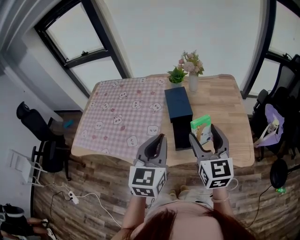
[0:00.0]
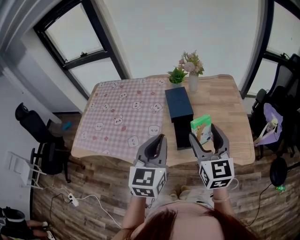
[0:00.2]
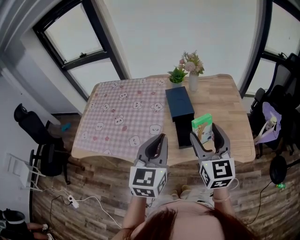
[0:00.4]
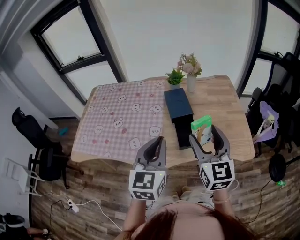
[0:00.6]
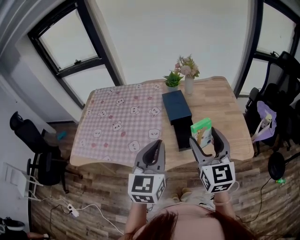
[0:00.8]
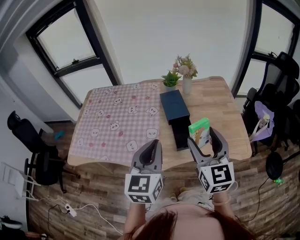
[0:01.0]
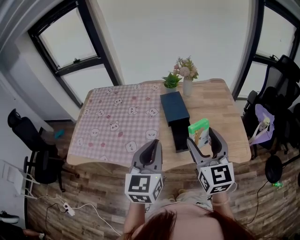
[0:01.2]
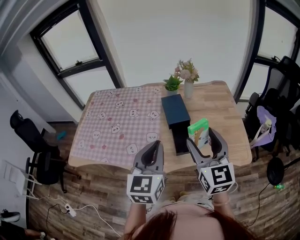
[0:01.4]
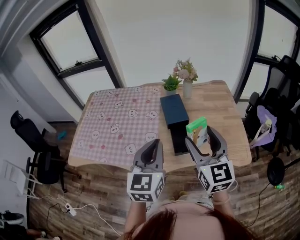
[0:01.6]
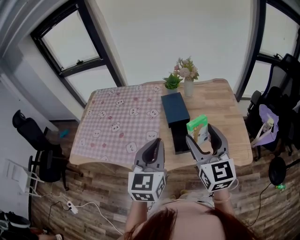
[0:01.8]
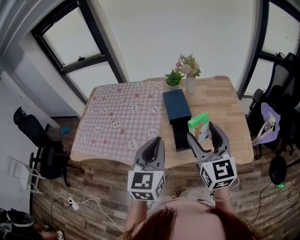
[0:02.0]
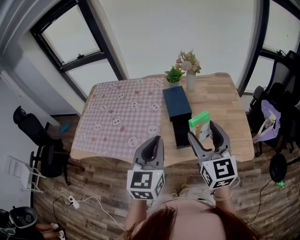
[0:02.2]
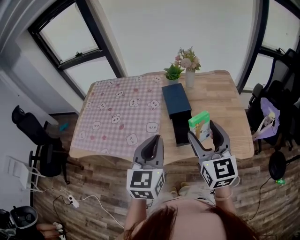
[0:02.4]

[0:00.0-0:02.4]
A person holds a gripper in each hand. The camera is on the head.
0:00.0 to 0:01.2: The right gripper ends up about 5 cm from where it was; the left gripper heads to the left, covering about 5 cm.
0:01.2 to 0:02.4: The grippers move only a little.

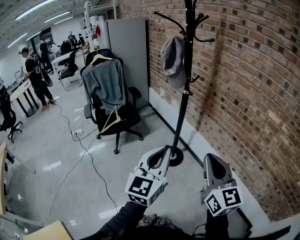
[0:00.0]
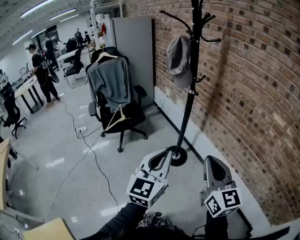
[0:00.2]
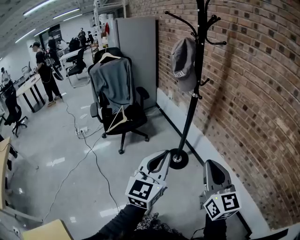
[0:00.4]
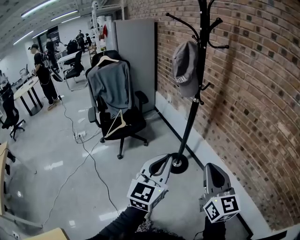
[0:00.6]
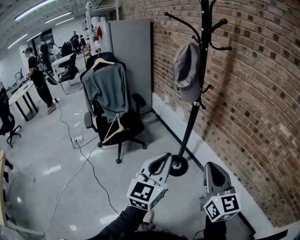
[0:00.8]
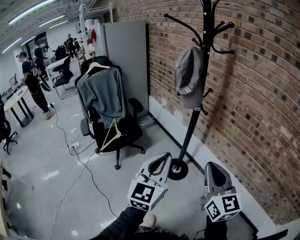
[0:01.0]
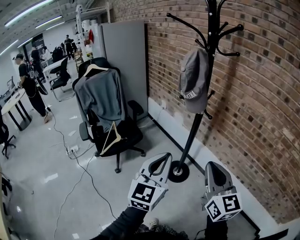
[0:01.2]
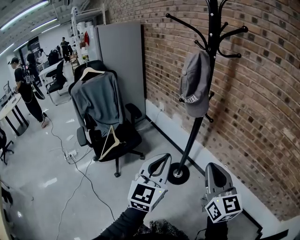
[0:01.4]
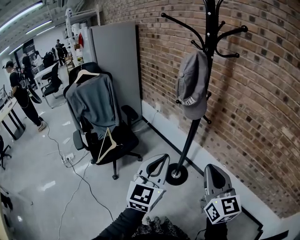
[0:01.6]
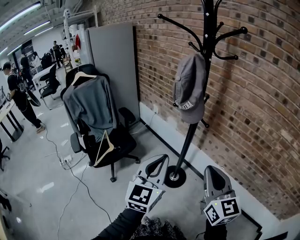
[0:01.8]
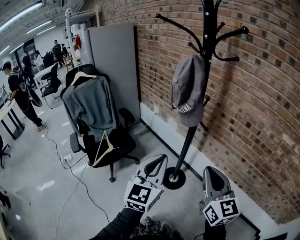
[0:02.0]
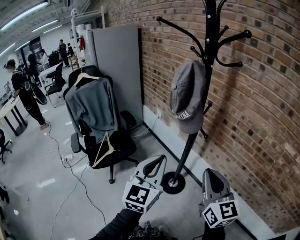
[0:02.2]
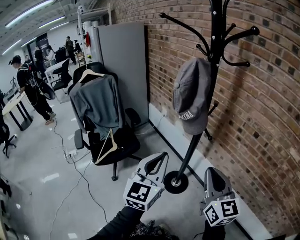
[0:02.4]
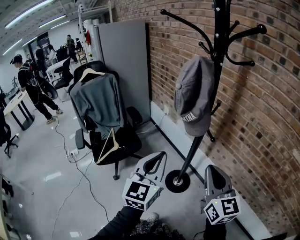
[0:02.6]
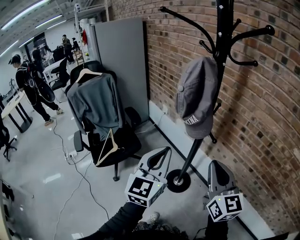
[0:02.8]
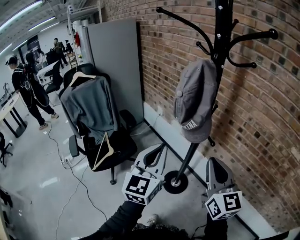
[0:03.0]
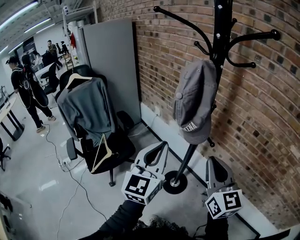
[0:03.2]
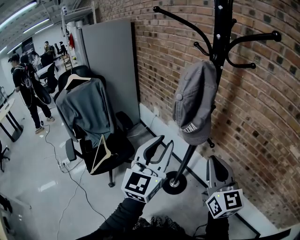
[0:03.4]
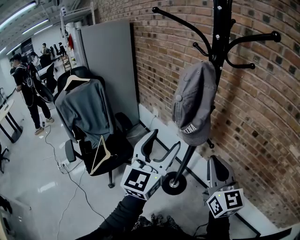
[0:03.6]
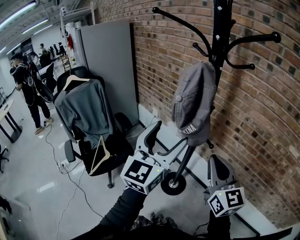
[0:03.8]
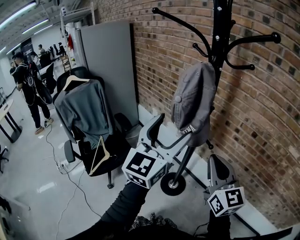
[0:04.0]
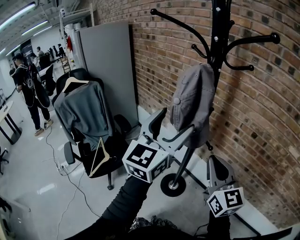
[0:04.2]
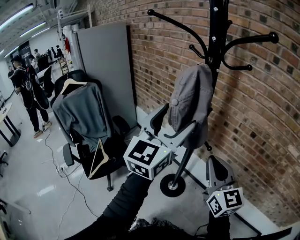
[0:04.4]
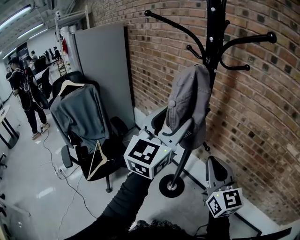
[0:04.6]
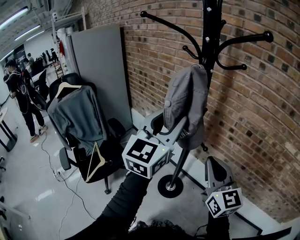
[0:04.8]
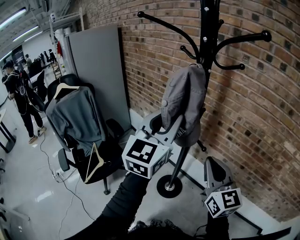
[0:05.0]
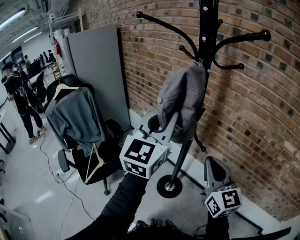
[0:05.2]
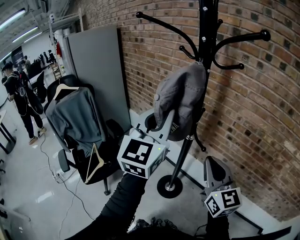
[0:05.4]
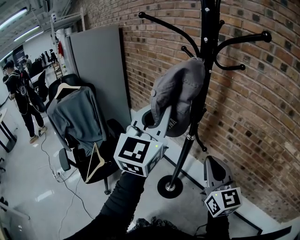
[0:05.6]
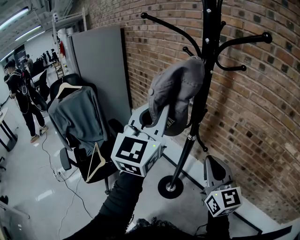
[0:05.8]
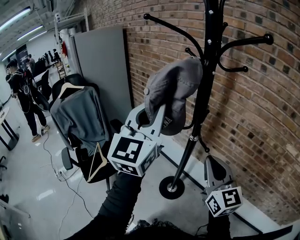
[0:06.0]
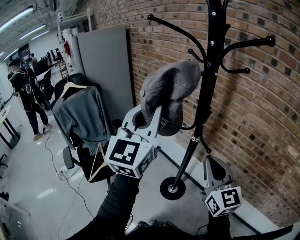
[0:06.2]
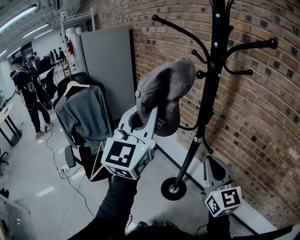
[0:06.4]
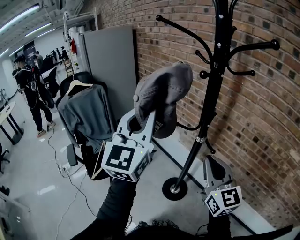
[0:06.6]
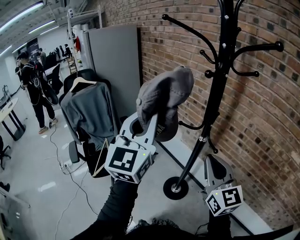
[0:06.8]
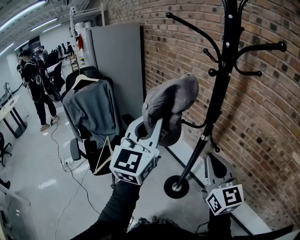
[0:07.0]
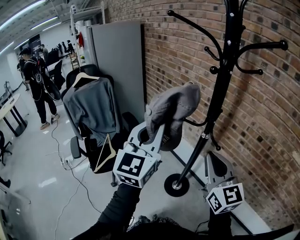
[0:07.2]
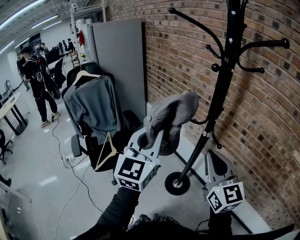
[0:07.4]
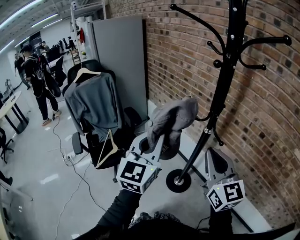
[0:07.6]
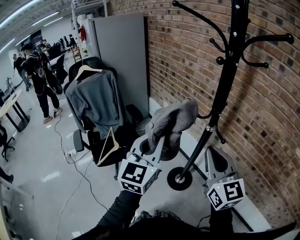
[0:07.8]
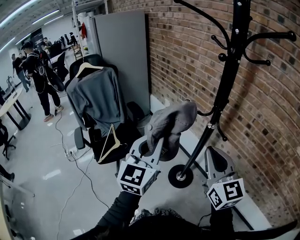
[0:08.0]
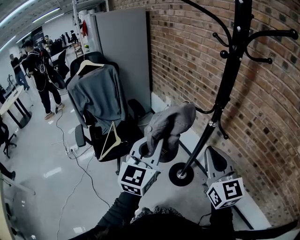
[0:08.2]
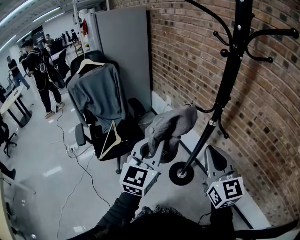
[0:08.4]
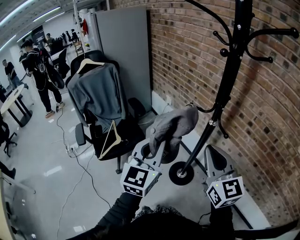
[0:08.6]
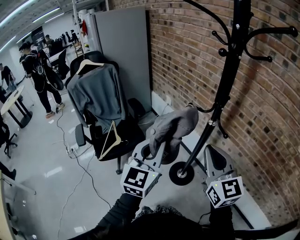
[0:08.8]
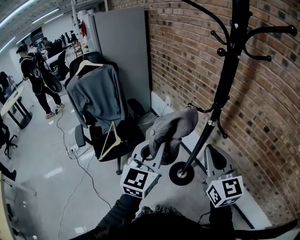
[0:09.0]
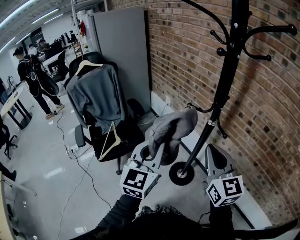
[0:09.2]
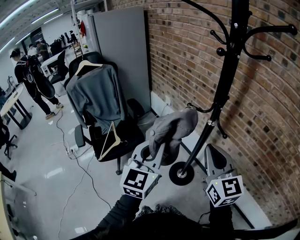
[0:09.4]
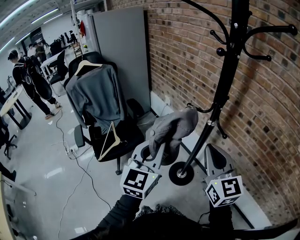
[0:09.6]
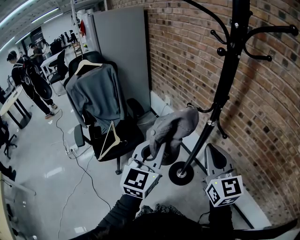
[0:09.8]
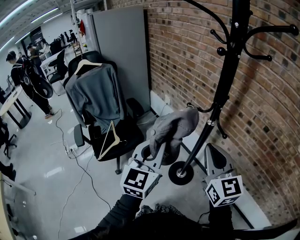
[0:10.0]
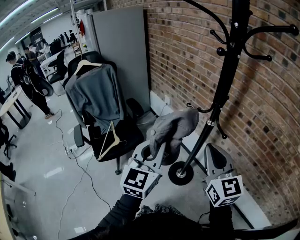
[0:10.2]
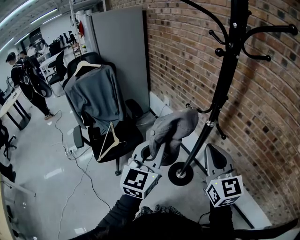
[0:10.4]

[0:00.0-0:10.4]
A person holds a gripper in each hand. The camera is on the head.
0:00.0 to 0:01.4: Both grippers travel together forward and to the left, about 20 cm.
0:01.4 to 0:03.0: Both grippers move forward, roughly 15 cm.
0:03.0 to 0:04.4: The left gripper travels upward and forward by some 15 cm, and opens its fingers.
0:04.4 to 0:06.0: The left gripper is displaced to the left by roughly 5 cm, and closes its fingers.
0:06.0 to 0:07.4: The left gripper heads downward and to the left, covering roughly 10 cm. The right gripper changes place by some 5 cm.
0:07.4 to 0:09.0: The left gripper is displaced downward by some 10 cm.
0:09.0 to 0:10.4: Neither gripper changes place.

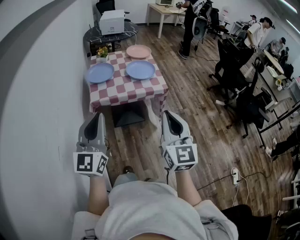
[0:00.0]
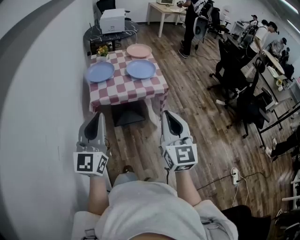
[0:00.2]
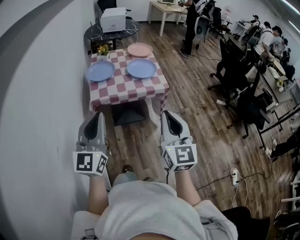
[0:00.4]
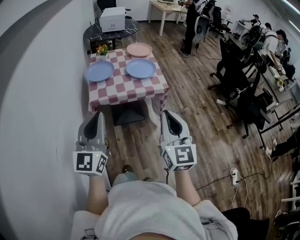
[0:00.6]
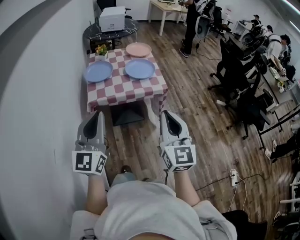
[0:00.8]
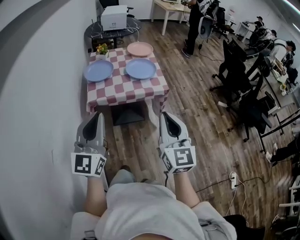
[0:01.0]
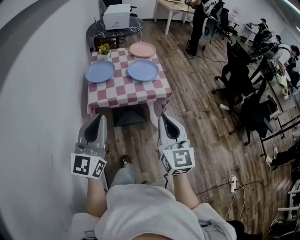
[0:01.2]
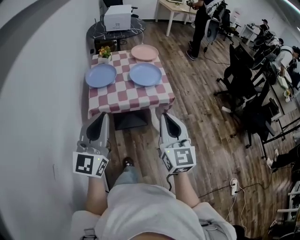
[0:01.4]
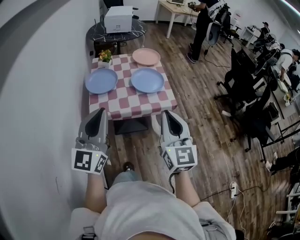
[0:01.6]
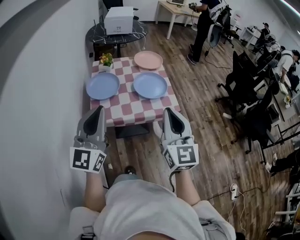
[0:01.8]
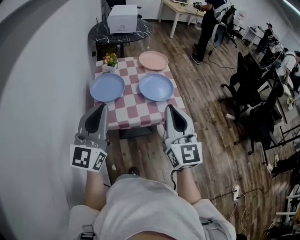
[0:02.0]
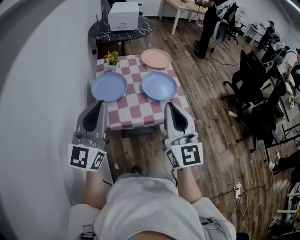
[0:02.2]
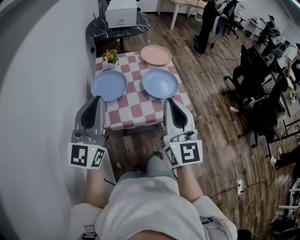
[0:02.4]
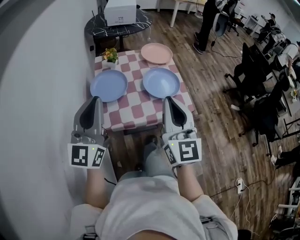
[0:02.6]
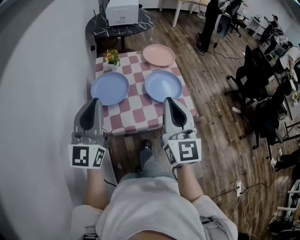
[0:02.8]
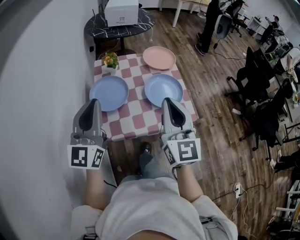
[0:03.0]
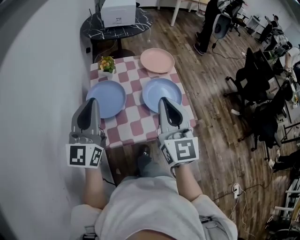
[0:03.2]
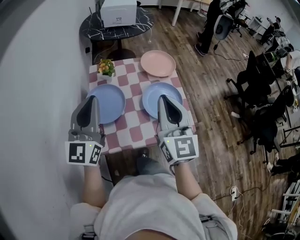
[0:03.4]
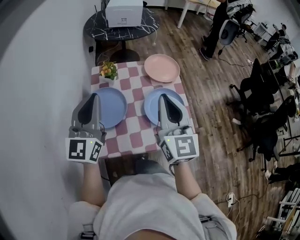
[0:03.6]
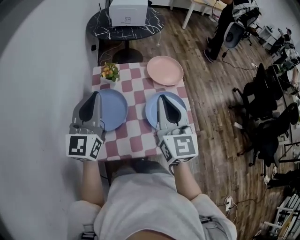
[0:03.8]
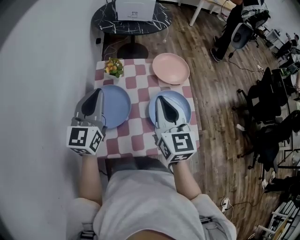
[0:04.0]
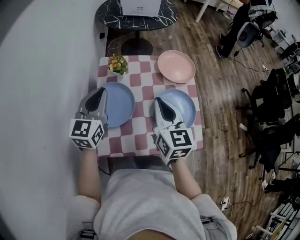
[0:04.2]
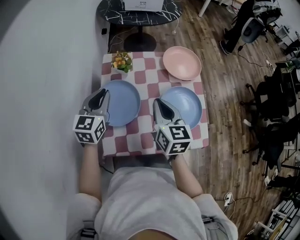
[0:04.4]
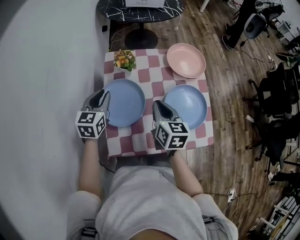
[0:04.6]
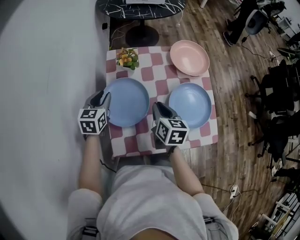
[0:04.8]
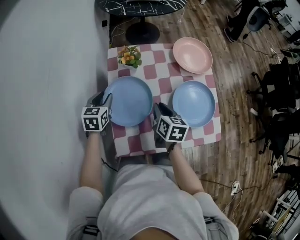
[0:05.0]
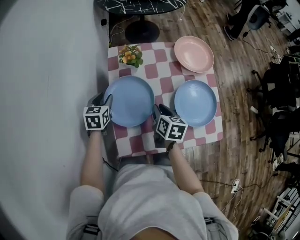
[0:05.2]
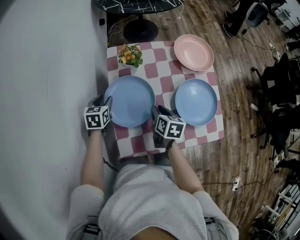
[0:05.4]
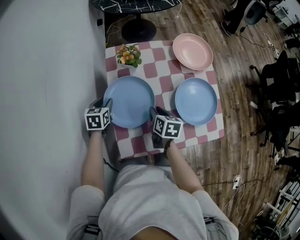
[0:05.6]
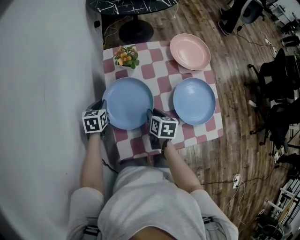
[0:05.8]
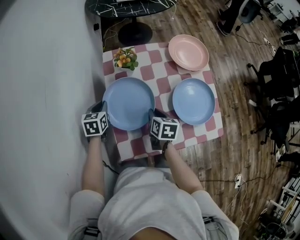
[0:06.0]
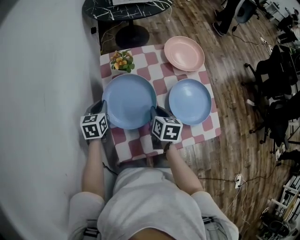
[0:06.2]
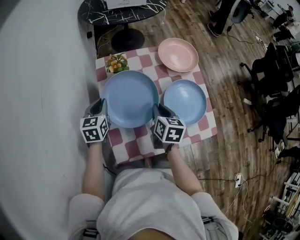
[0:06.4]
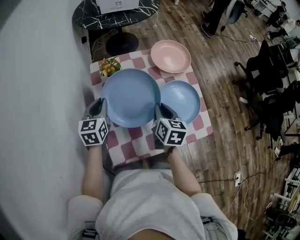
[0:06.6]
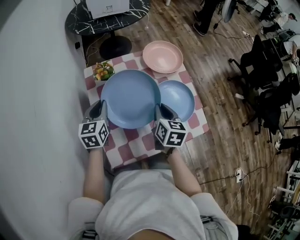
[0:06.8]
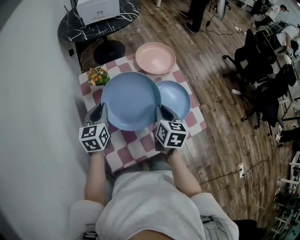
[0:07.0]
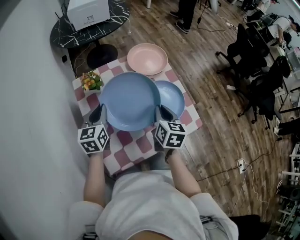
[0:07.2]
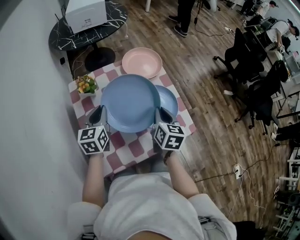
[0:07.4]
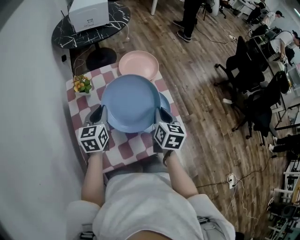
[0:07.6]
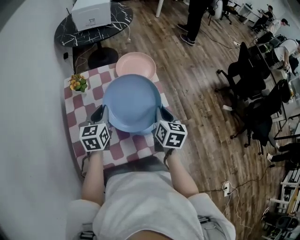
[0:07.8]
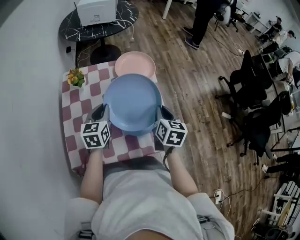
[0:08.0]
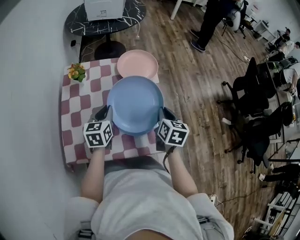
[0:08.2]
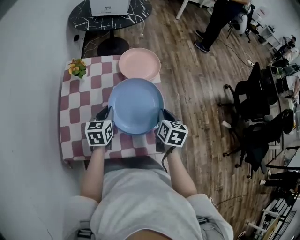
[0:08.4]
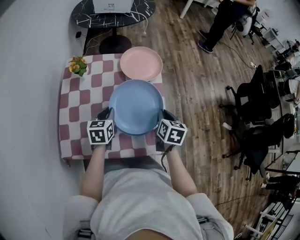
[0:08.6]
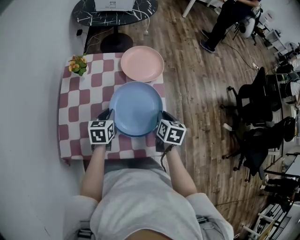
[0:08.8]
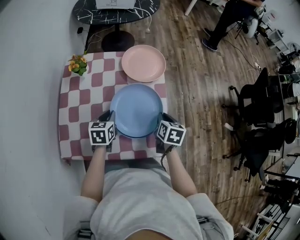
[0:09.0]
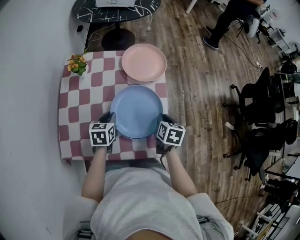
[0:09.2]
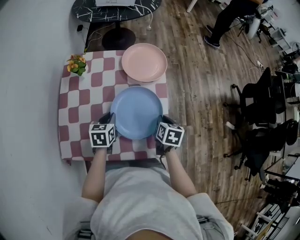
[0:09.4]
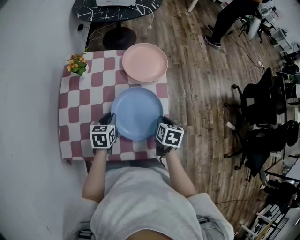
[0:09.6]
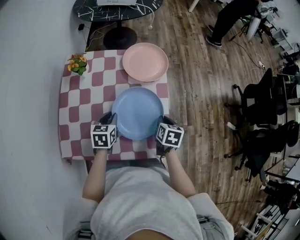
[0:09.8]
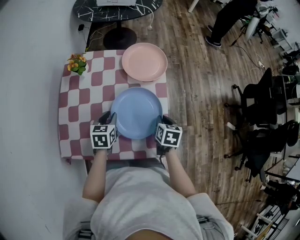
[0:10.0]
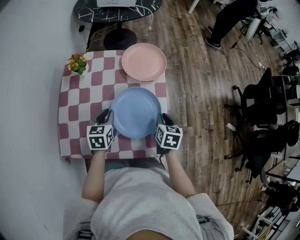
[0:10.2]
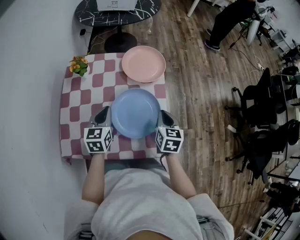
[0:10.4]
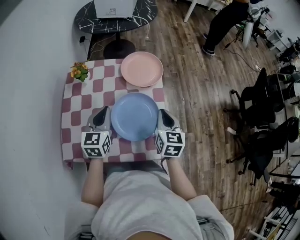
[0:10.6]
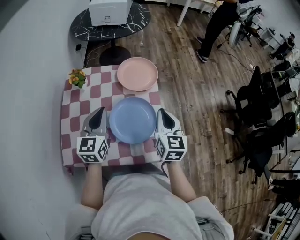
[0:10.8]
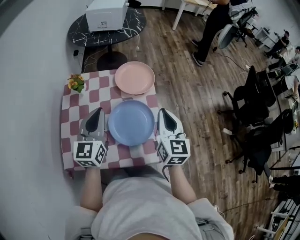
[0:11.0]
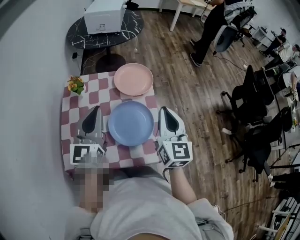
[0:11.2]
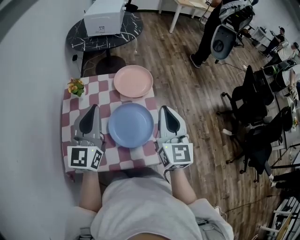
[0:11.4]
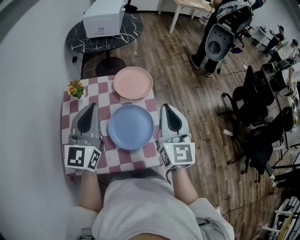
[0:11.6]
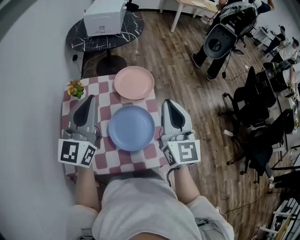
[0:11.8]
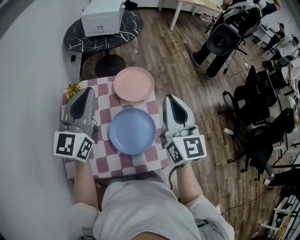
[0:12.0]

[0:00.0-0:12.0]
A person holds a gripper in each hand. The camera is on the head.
0:00.0 to 0:01.6: Both grippers travel together forward, some 15 cm.
0:01.6 to 0:03.0: The two grippers go some 25 cm forward and to the left.
0:03.0 to 0:04.4: The grippers both shift forward and downward by about 25 cm. The right gripper turns by approximately 30 degrees. Meanwhile the left gripper points its fingers about 30 degrees further downward.
0:04.4 to 0:06.0: The left gripper shifts some 20 cm downward and to the left, changes its angle by roughly 30 degrees, and opens and closes again; the right gripper is displaced downward by approximately 20 cm, and rotates about 30 degrees.
0:06.0 to 0:07.6: The grippers both shift to the right and upward by about 25 cm. The right gripper rotates roughly 30 degrees; the left gripper rotates roughly 20 degrees.
0:07.6 to 0:09.0: The grippers both shift downward and to the right by approximately 15 cm. The left gripper swivels some 20 degrees. The right gripper swivels approximately 20 degrees.
0:09.0 to 0:10.4: The left gripper heads upward, covering some 5 cm.
0:10.4 to 0:12.0: The grippers both shift upward by approximately 30 cm. The left gripper tilts its fingers approximately 40 degrees upward. The right gripper tilts its fingers some 40 degrees upward.
